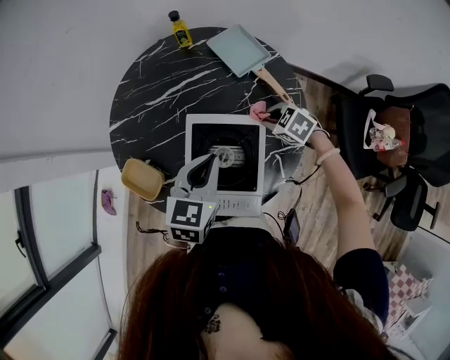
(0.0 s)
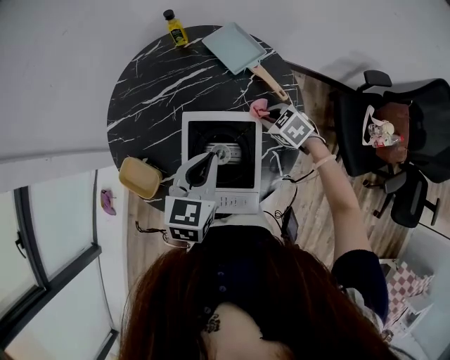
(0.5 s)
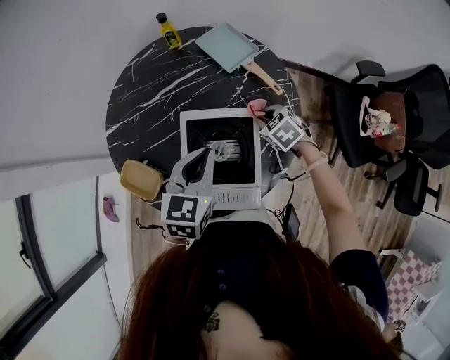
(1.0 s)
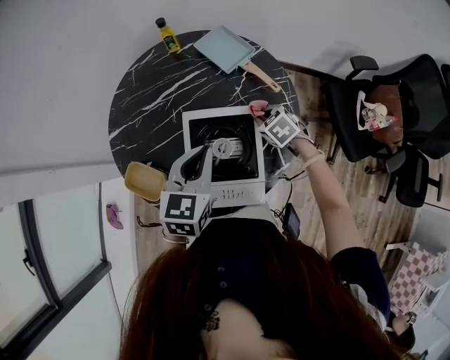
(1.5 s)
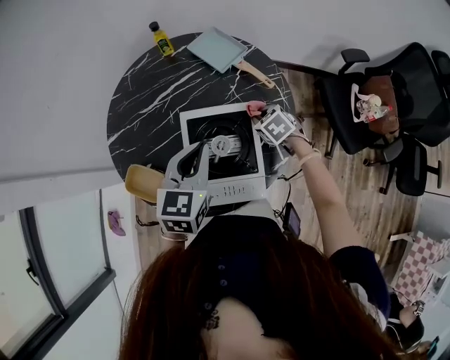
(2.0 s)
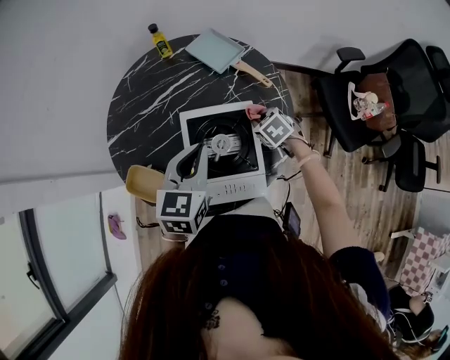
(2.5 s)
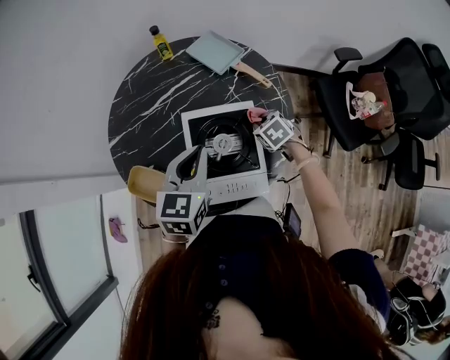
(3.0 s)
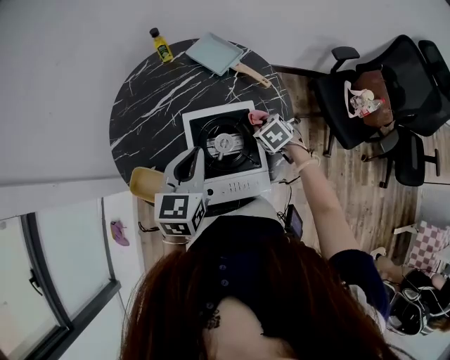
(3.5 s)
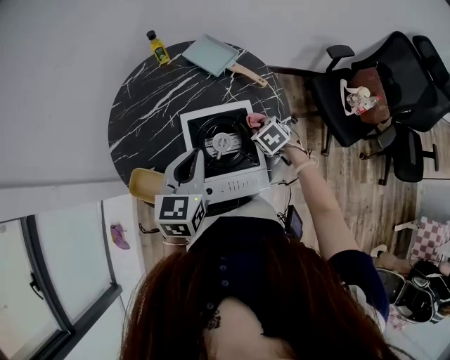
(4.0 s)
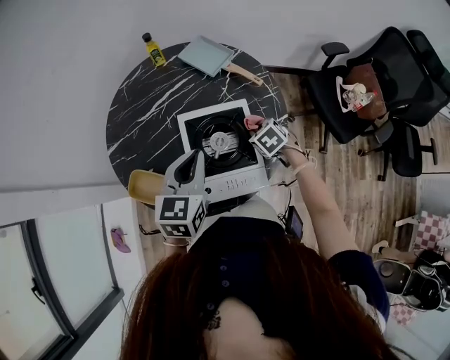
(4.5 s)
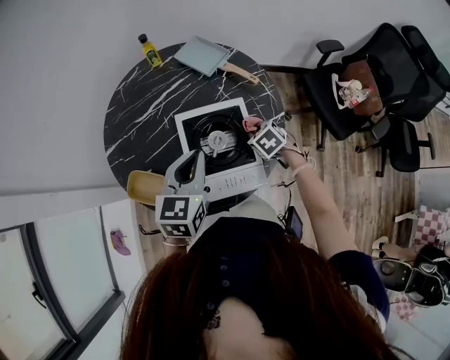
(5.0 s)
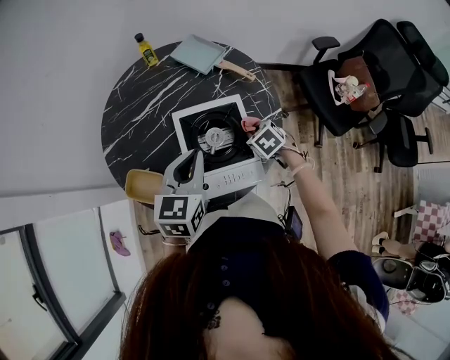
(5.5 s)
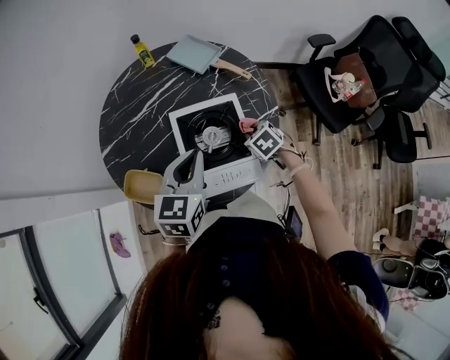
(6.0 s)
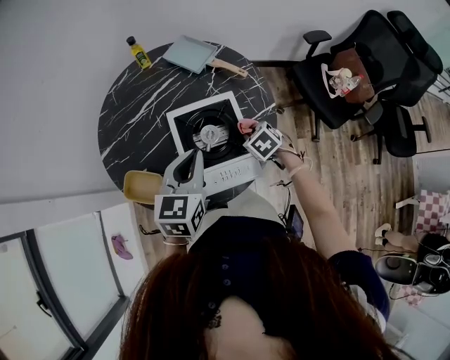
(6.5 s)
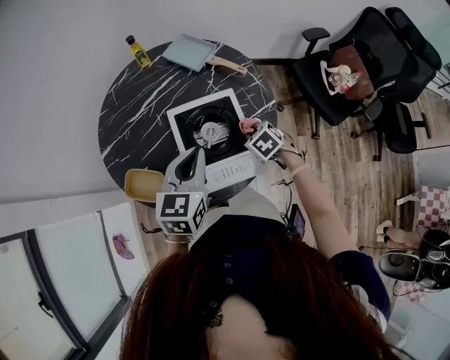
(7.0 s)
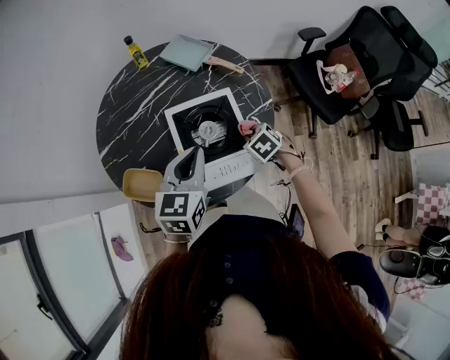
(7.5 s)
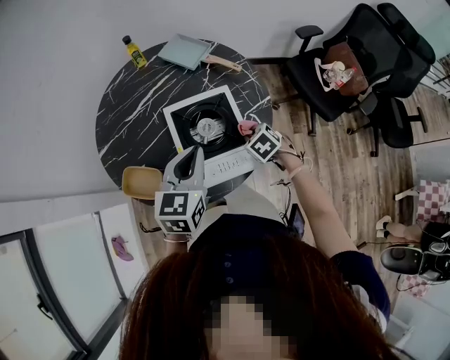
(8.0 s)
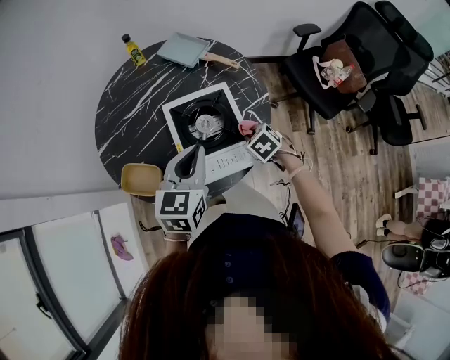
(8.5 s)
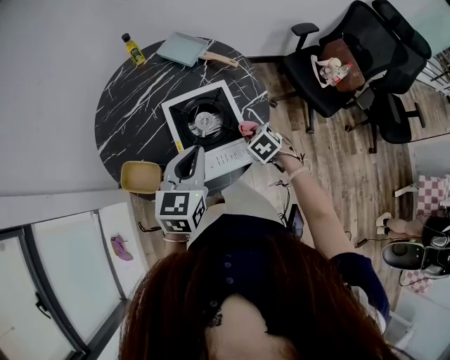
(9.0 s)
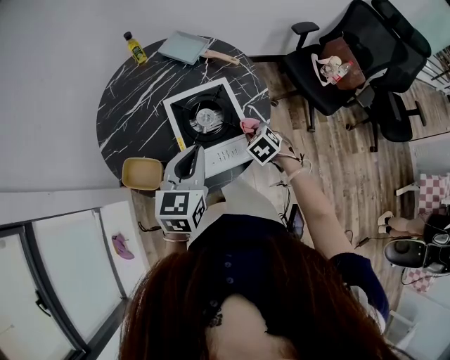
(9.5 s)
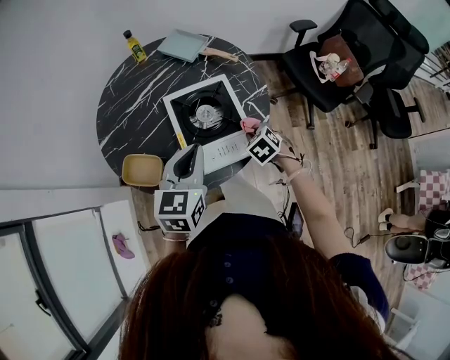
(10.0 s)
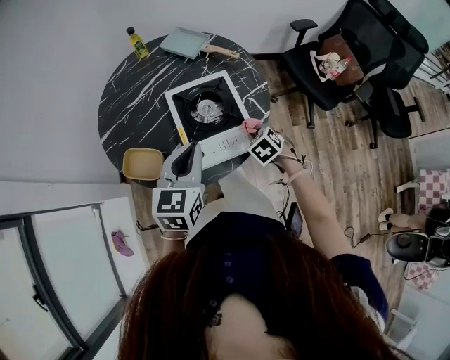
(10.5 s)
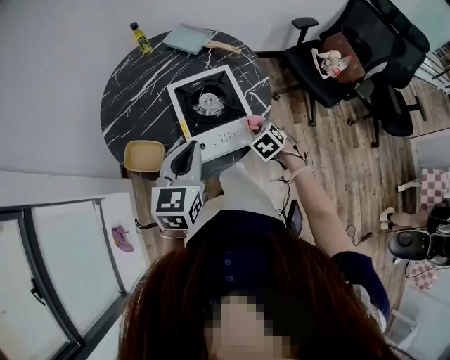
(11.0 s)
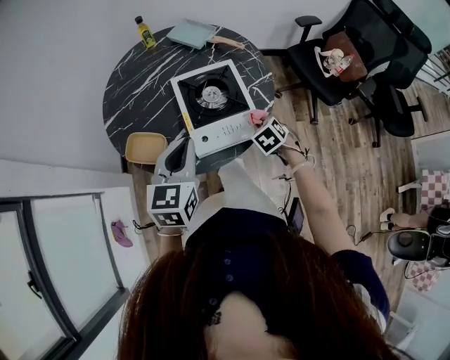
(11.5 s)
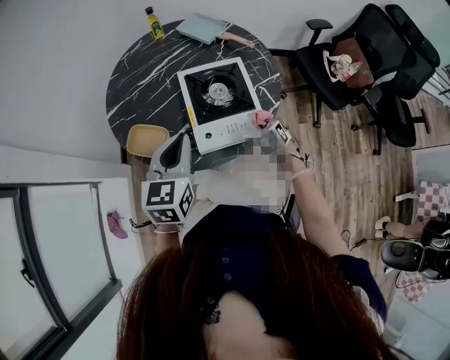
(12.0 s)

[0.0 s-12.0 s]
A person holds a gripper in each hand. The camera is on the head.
0.0 to 2.0 s: The right gripper turns by approximately 30 degrees.
2.0 to 4.0 s: The right gripper is displaced backward by about 5 cm.
4.0 to 6.0 s: The right gripper shifts about 5 cm backward.
6.0 to 8.0 s: The right gripper ends up some 5 cm from where it was.
8.0 to 10.0 s: The grippers both shift backward by some 5 cm.
10.0 to 12.0 s: The left gripper travels to the left and backward by some 10 cm.

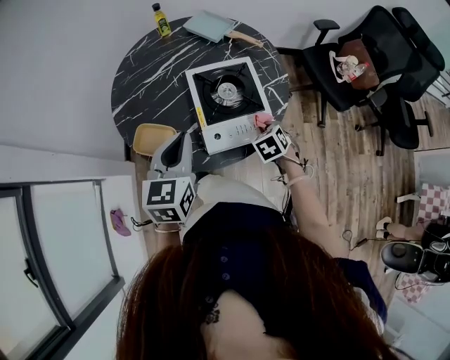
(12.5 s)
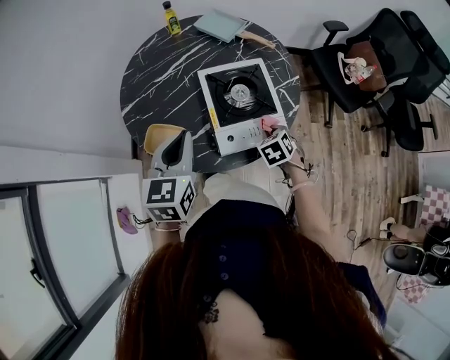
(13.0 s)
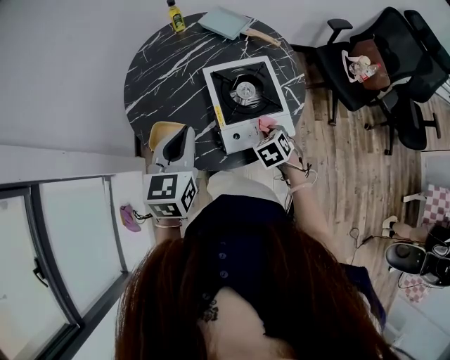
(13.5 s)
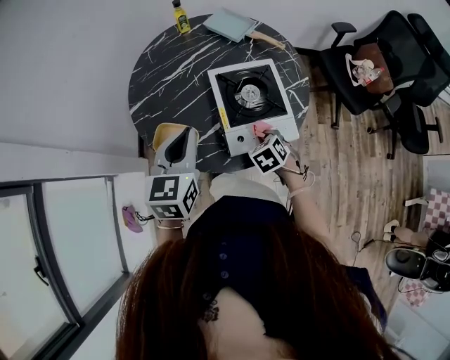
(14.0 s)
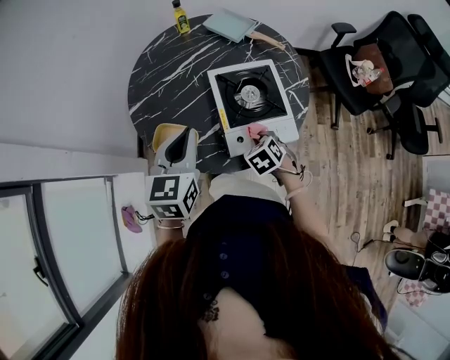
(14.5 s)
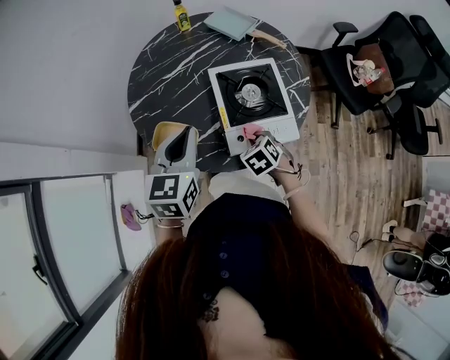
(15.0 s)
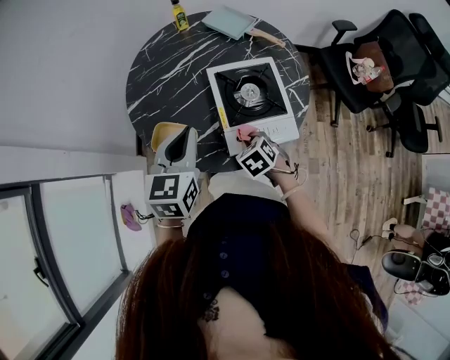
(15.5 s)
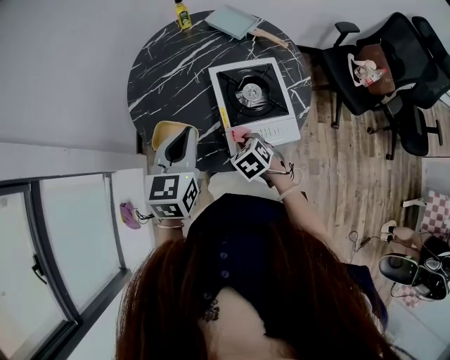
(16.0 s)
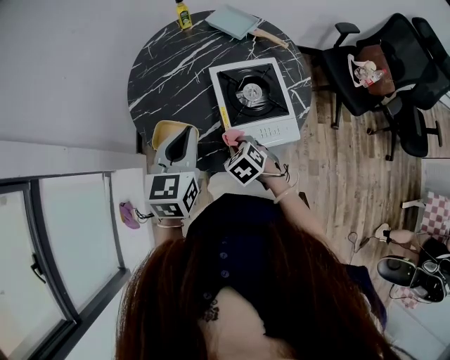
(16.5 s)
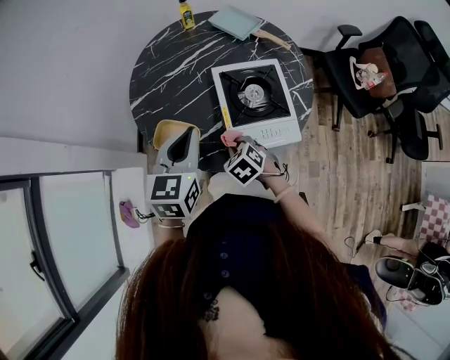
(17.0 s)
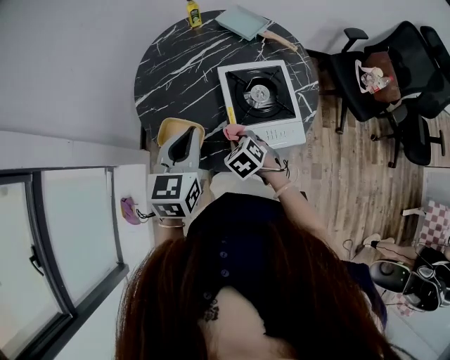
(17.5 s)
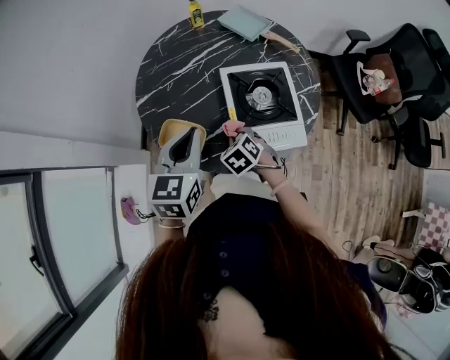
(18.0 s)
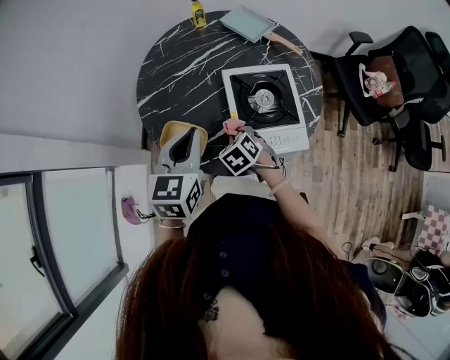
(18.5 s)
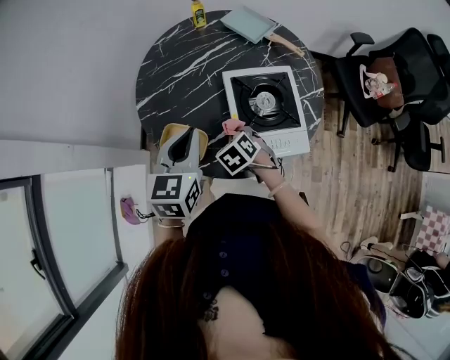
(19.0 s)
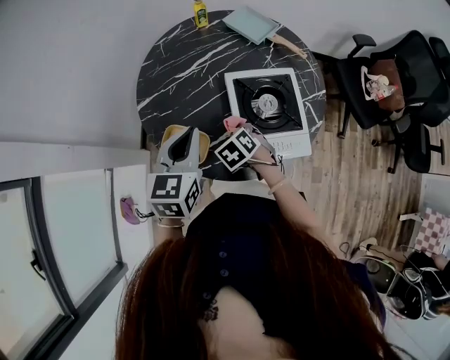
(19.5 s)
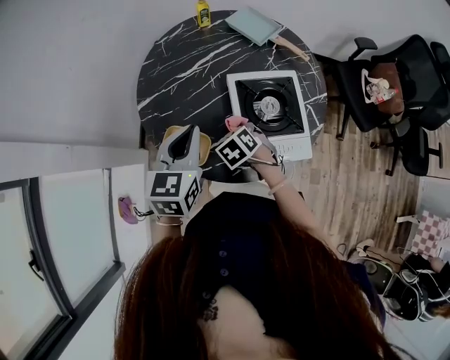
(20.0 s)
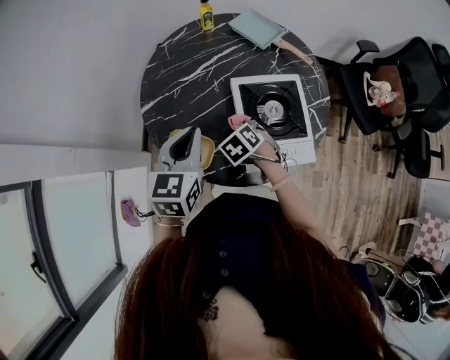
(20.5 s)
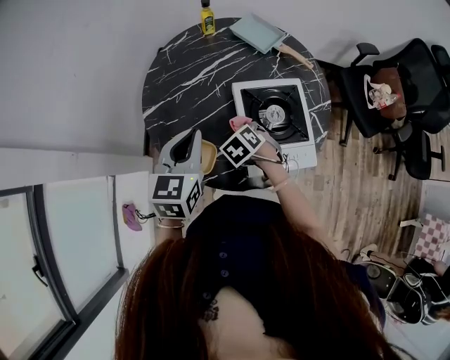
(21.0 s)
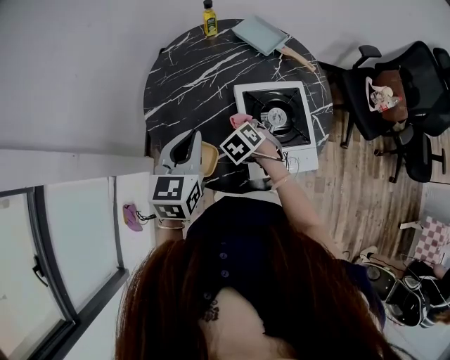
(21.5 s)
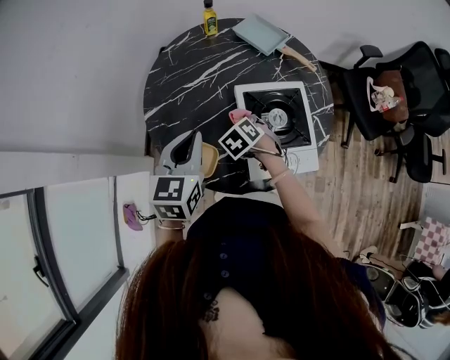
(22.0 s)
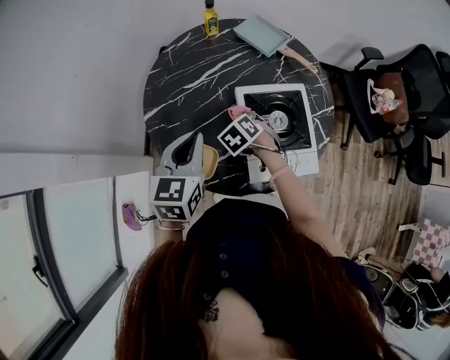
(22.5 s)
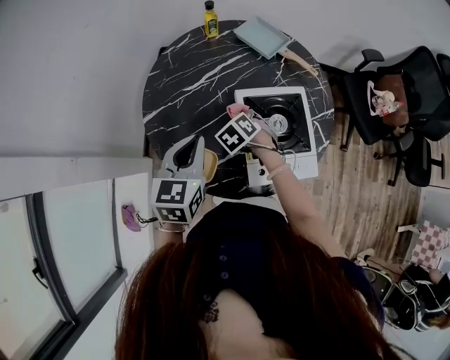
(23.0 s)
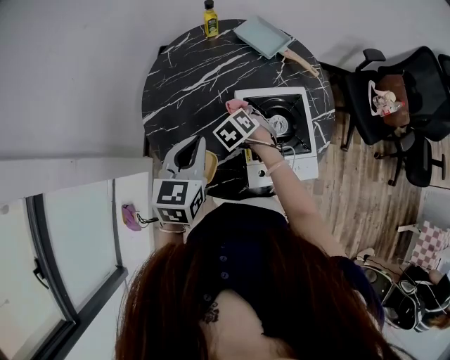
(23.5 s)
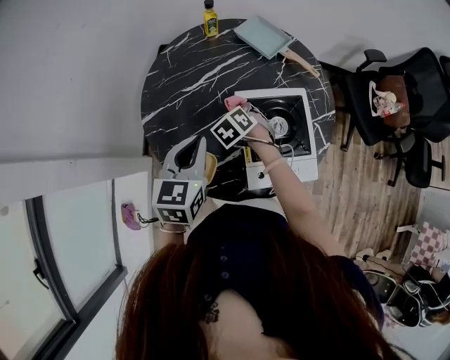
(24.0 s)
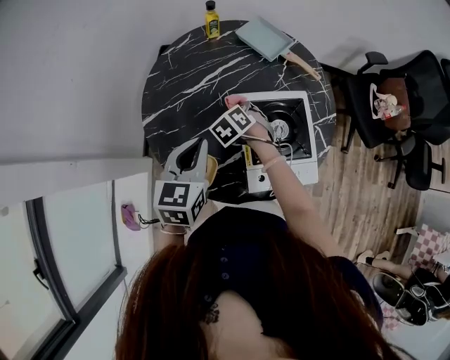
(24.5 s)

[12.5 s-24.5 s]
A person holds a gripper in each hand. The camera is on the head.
12.5 to 14.5 s: The right gripper heads to the left, covering approximately 10 cm. The left gripper moves to the left, some 5 cm.
14.5 to 16.5 s: The right gripper goes roughly 10 cm to the left.
16.5 to 18.5 s: The right gripper moves forward, roughly 5 cm.
18.5 to 20.5 s: The left gripper changes place by some 5 cm. The right gripper is displaced forward by roughly 5 cm.
20.5 to 22.5 s: The right gripper heads forward, covering approximately 5 cm.
22.5 to 24.5 s: The right gripper is displaced forward by about 5 cm.

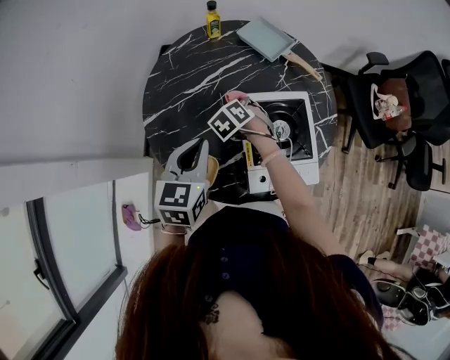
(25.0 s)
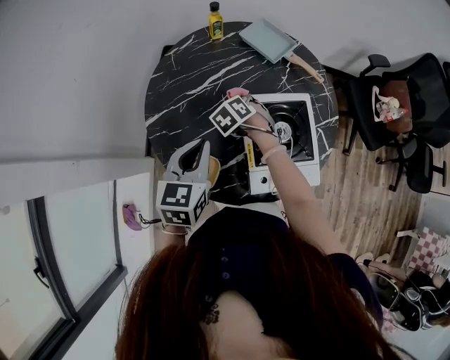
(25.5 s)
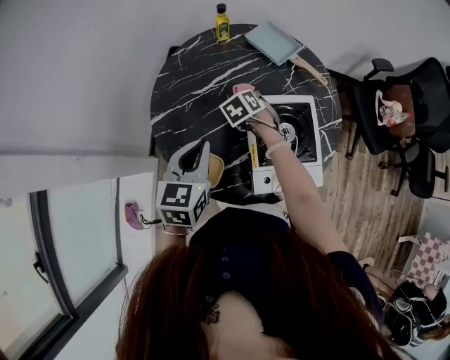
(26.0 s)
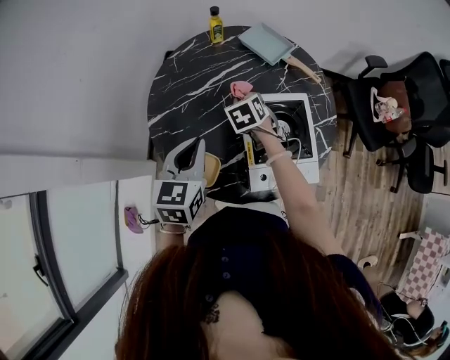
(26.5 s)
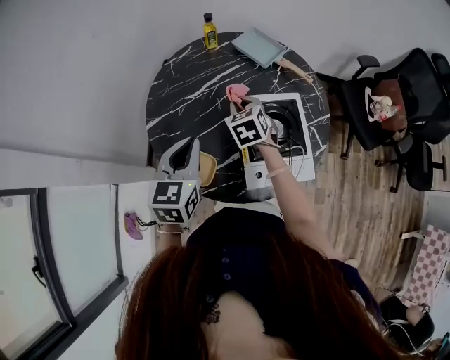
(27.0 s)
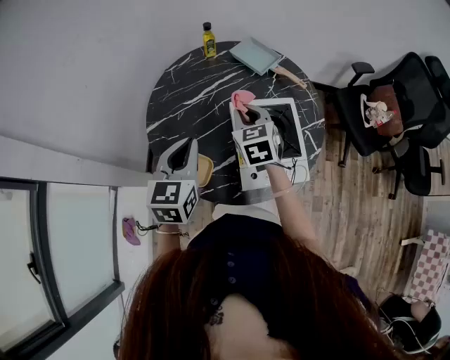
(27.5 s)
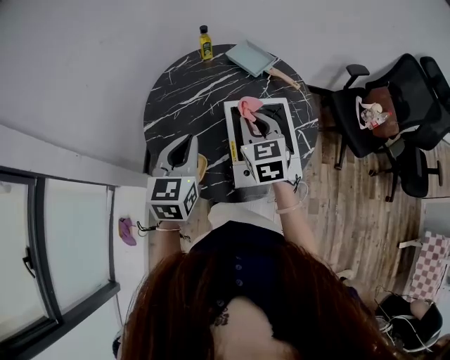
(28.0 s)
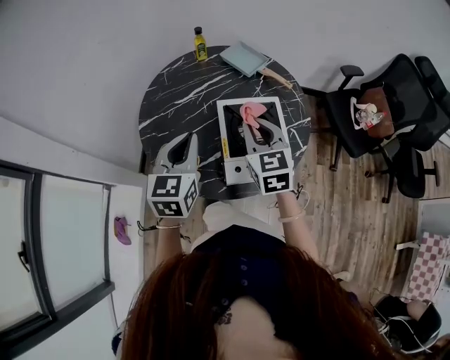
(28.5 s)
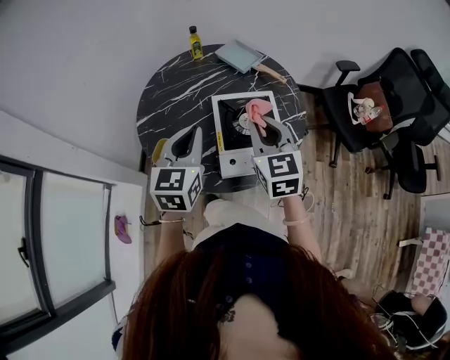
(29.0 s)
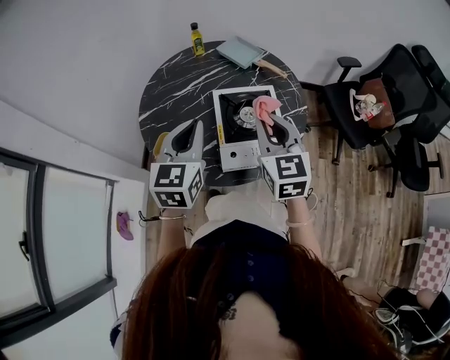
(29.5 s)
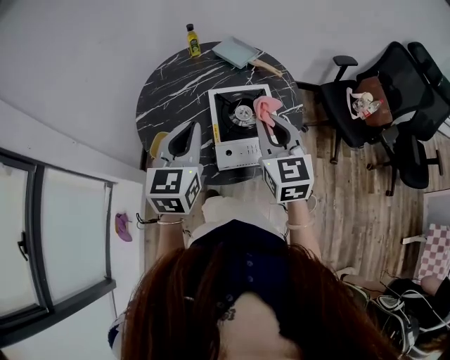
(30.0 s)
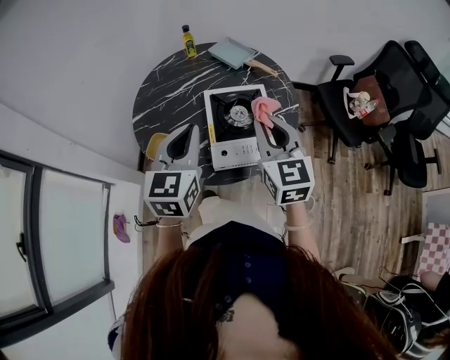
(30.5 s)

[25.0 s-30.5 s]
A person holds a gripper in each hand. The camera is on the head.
25.0 to 27.0 s: The right gripper moves upward, some 10 cm, and turns by approximately 30 degrees.
27.0 to 28.5 s: The right gripper is displaced backward, upward and to the right by about 20 cm, and turns by about 20 degrees, while the left gripper moves to the right, some 5 cm.
28.5 to 30.5 s: The right gripper is displaced backward, to the right and upward by some 15 cm. The left gripper shifts about 10 cm backward and to the right.
